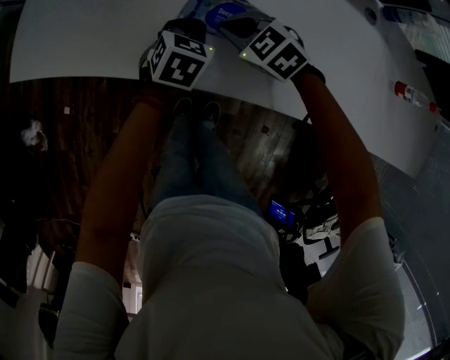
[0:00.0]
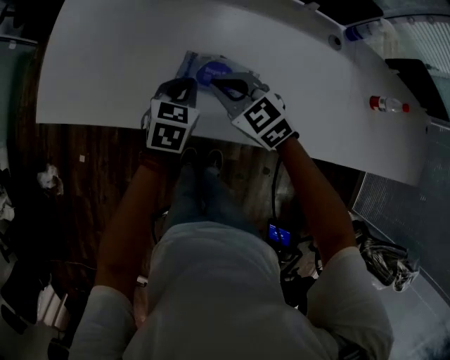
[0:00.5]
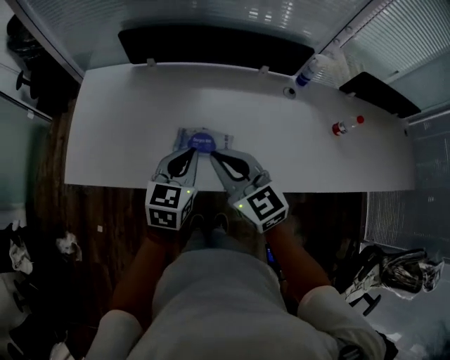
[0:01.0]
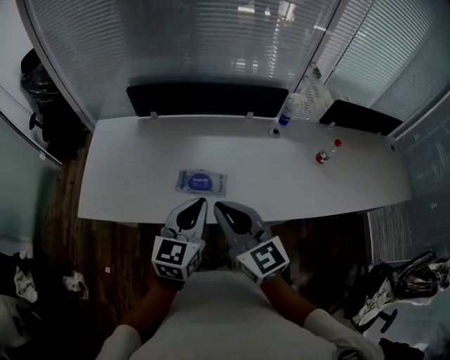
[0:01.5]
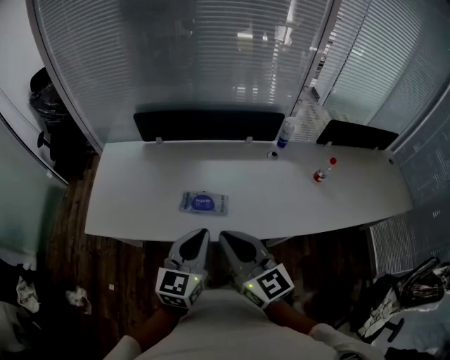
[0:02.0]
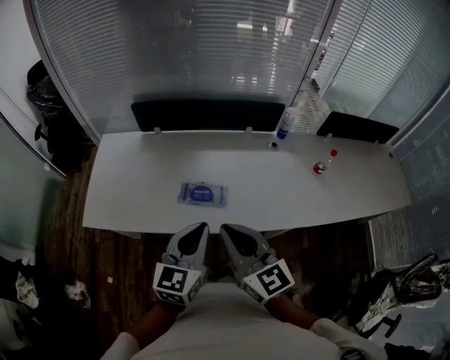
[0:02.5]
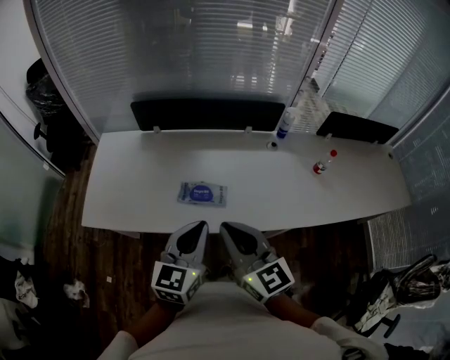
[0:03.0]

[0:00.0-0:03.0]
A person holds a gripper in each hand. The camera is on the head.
0:00.0 to 0:01.5: The grippers both shift upward and backward by about 40 cm. The left gripper tilts its fingers some 40 degrees upward; the right gripper tips its fingers upward by approximately 50 degrees.
0:01.5 to 0:03.0: The right gripper shifts by about 5 cm. Meanwhile the left gripper heads backward, covering roughly 5 cm.

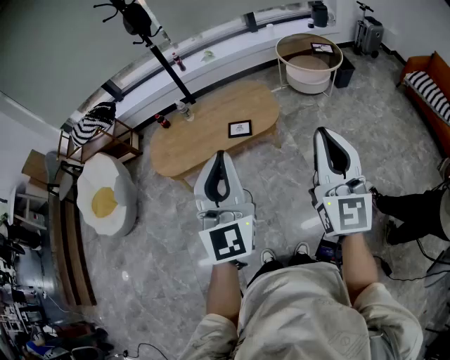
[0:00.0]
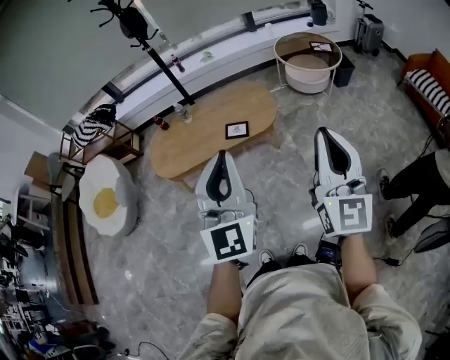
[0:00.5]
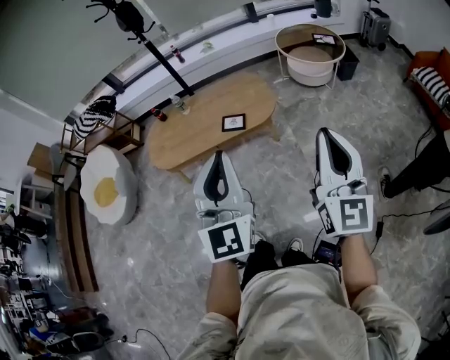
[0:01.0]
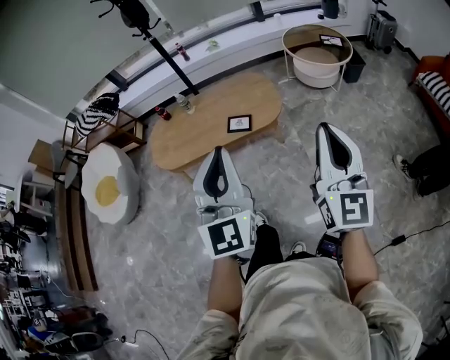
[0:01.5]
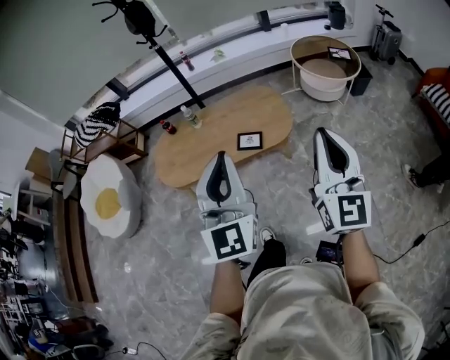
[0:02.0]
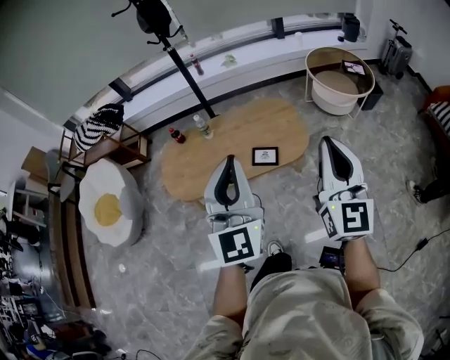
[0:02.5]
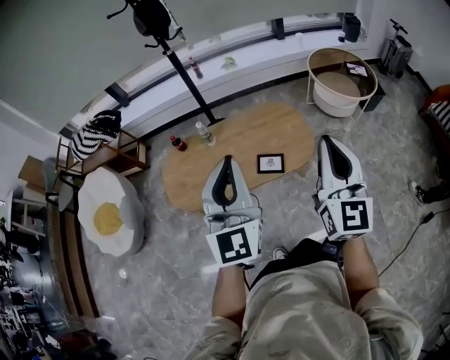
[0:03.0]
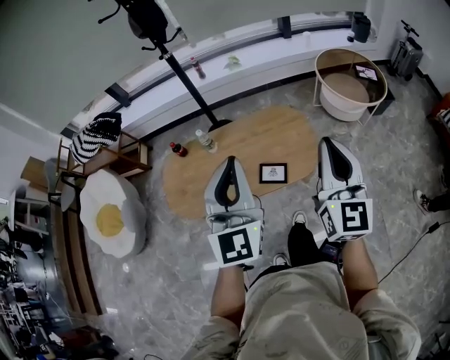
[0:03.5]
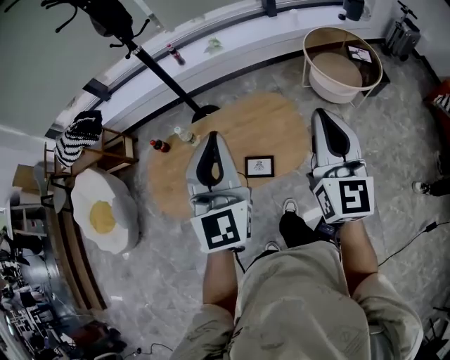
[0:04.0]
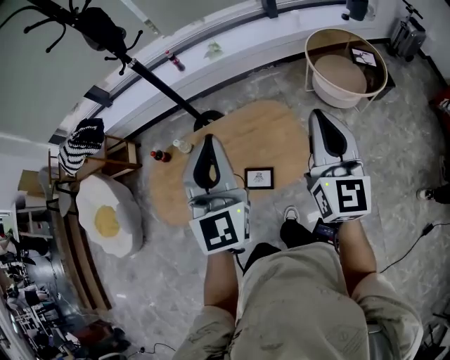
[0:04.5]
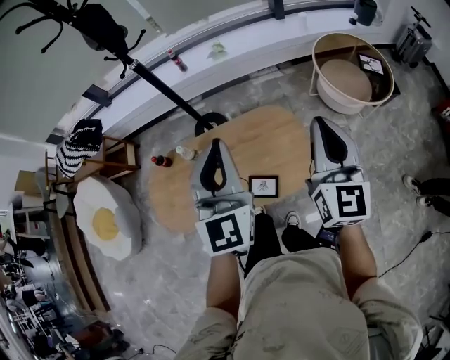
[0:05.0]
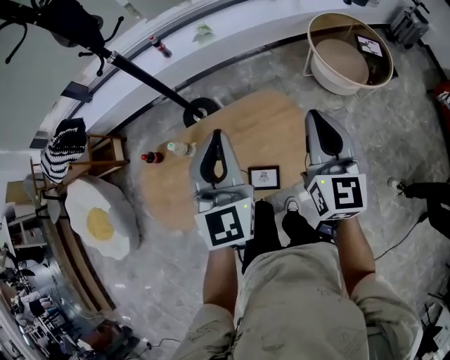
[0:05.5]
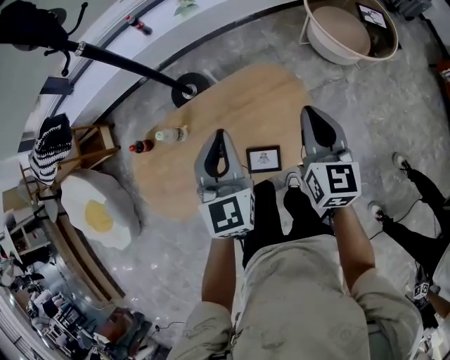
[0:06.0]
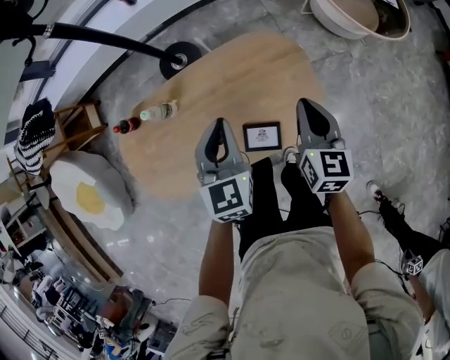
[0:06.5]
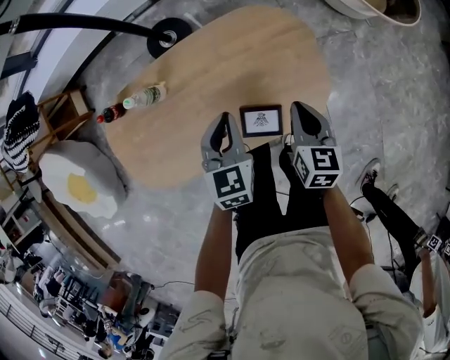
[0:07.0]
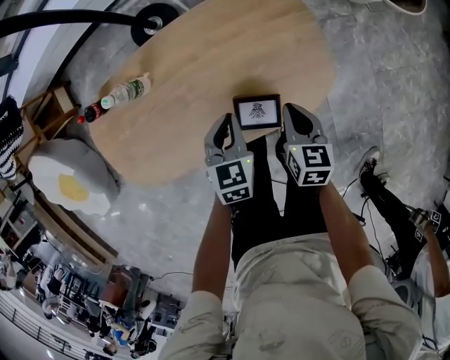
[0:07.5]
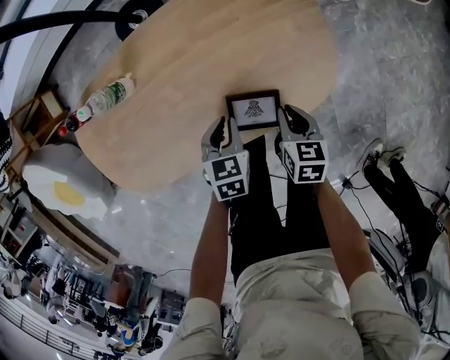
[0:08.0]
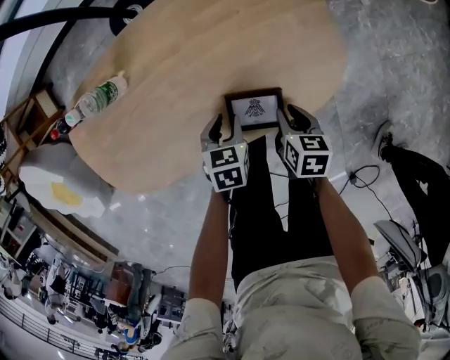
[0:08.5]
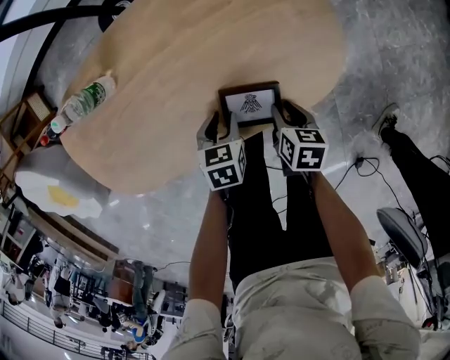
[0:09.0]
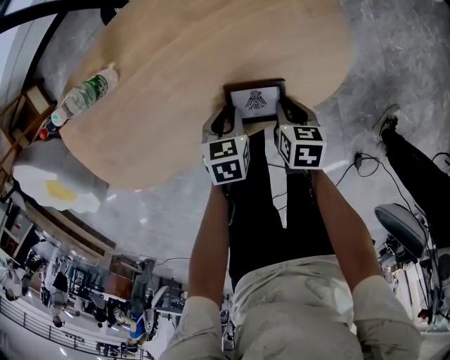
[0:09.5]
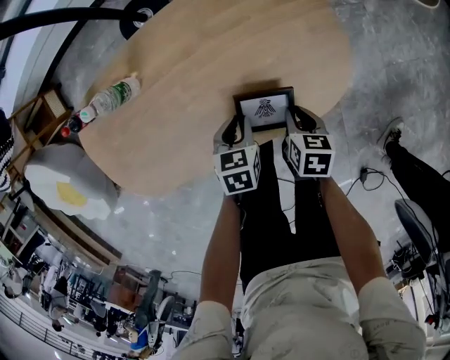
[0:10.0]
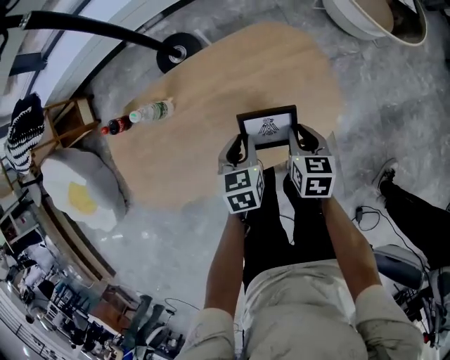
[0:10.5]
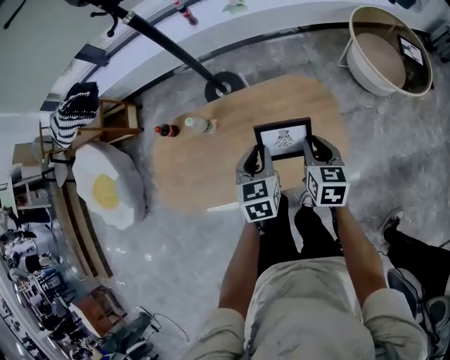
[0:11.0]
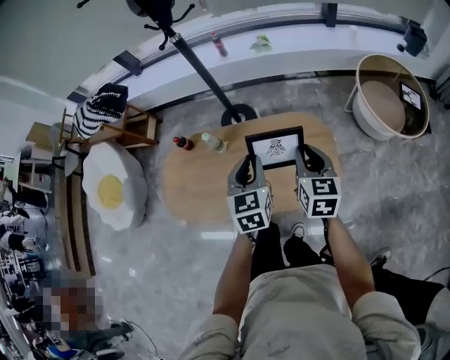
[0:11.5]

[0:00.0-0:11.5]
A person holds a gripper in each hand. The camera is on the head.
0:00.0 to 0:02.0: The two grippers go some 15 cm forward.
0:02.0 to 0:04.0: The grippers both shift forward by approximately 35 cm.
0:04.0 to 0:06.0: The grippers both shift downward and forward by some 25 cm. The right gripper changes its angle by some 20 degrees. The left gripper turns by some 20 degrees.
0:06.0 to 0:07.5: Both grippers move downward, some 30 cm. The right gripper changes its angle by approximately 30 degrees, while the left gripper changes its angle by approximately 30 degrees.
0:07.5 to 0:09.5: The right gripper travels downward and backward by about 15 cm, and turns by approximately 30 degrees, while the left gripper goes about 15 cm downward, and swivels about 20 degrees.
0:09.5 to 0:11.5: The two grippers go about 50 cm upward. The left gripper tilts its fingers some 40 degrees upward; the right gripper points its fingers approximately 40 degrees further upward.

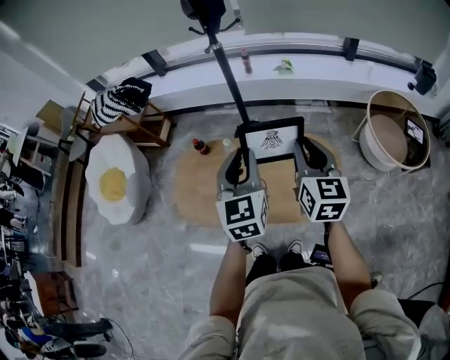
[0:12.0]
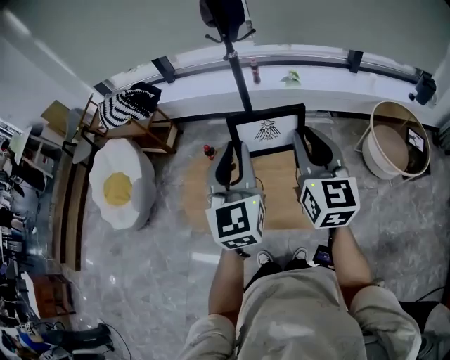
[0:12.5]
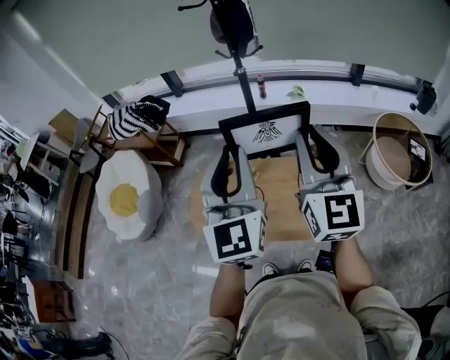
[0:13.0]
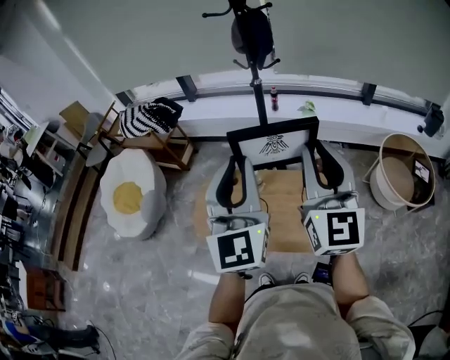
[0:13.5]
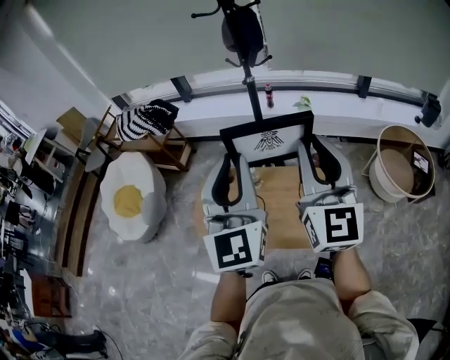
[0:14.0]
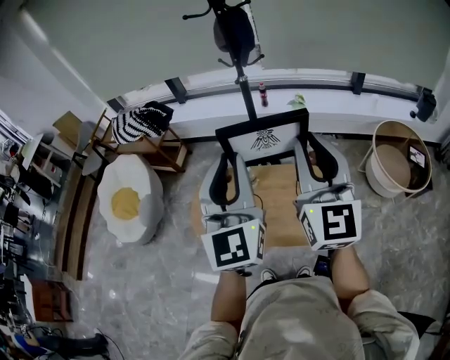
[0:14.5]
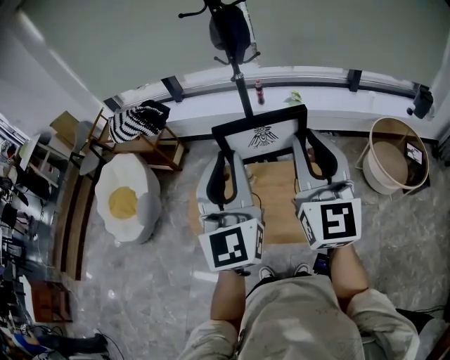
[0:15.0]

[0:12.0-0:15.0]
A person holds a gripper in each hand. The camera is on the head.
0:12.0 to 0:13.5: The grippers both shift upward and to the left by roughly 20 cm. The left gripper rotates about 20 degrees, while the right gripper rotates about 30 degrees.
0:13.5 to 0:15.0: There are only small adjustments of the grippers.

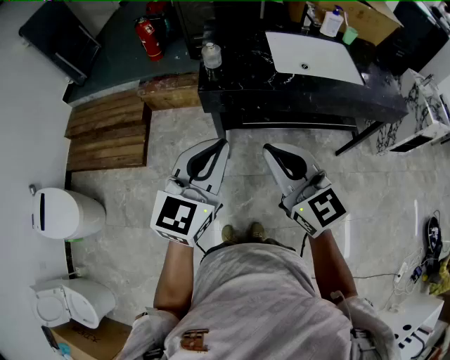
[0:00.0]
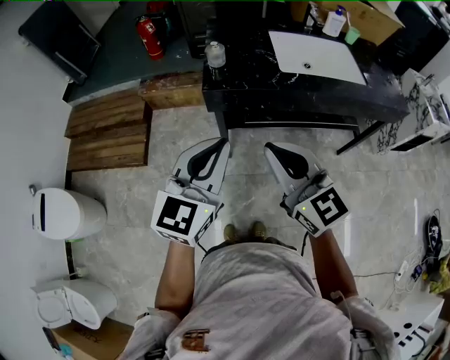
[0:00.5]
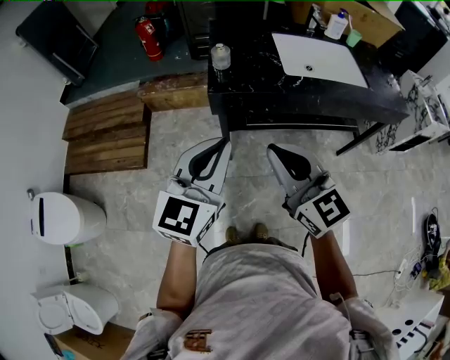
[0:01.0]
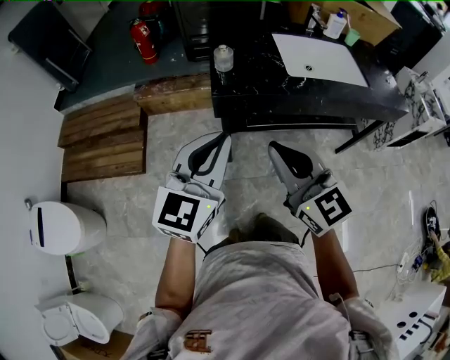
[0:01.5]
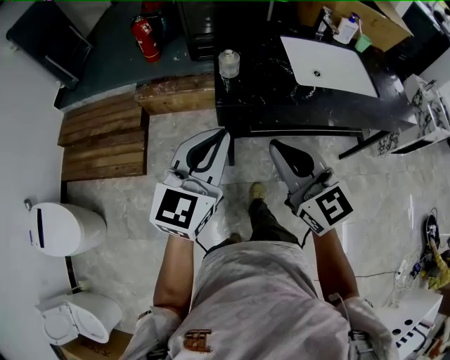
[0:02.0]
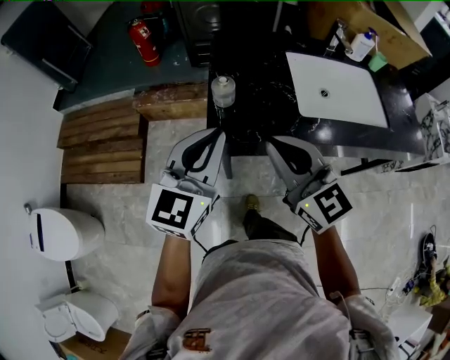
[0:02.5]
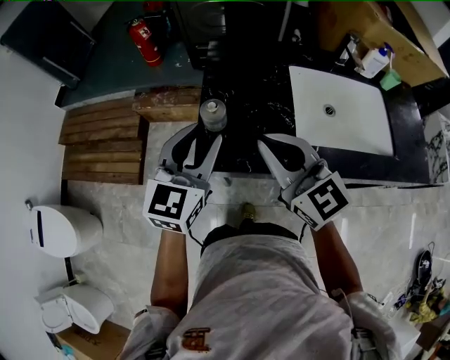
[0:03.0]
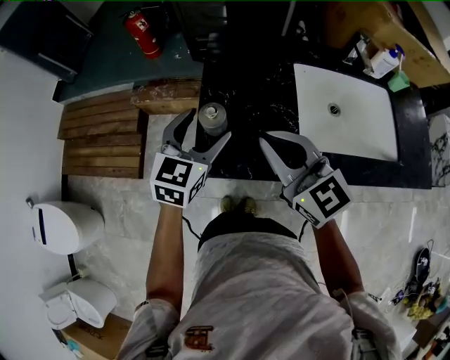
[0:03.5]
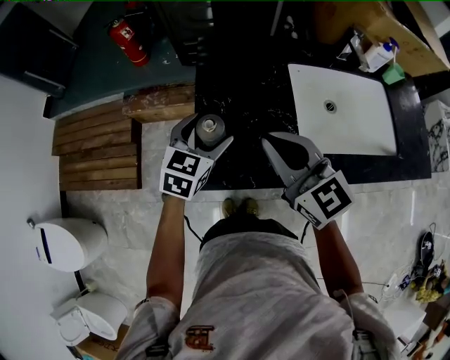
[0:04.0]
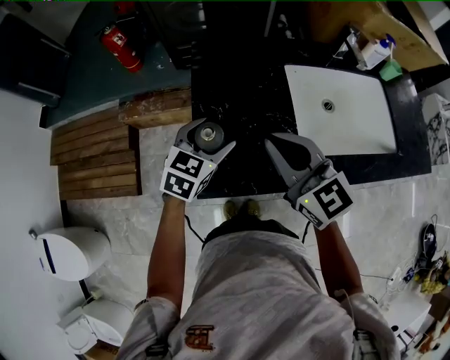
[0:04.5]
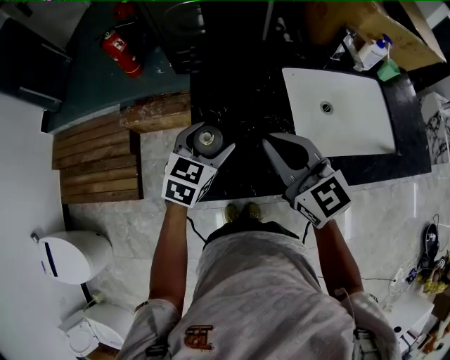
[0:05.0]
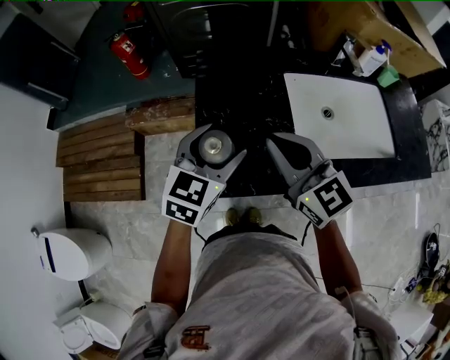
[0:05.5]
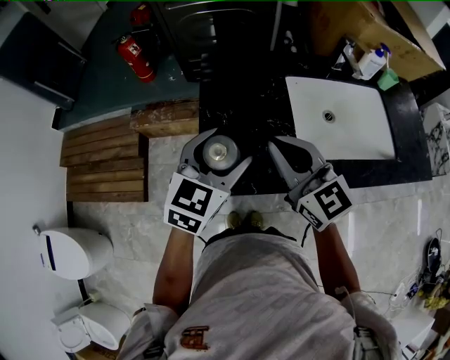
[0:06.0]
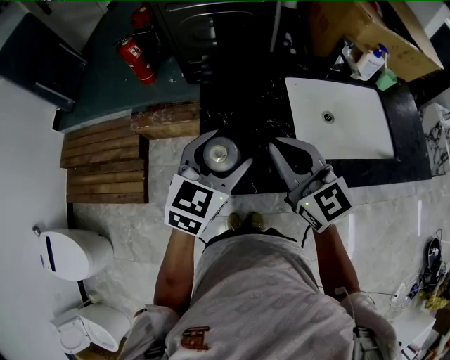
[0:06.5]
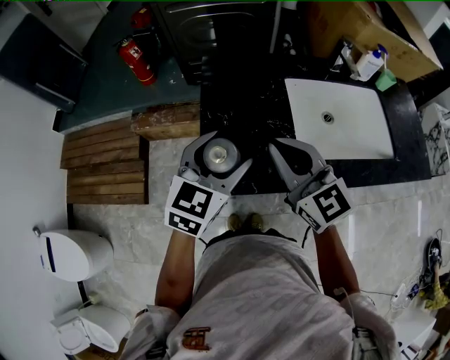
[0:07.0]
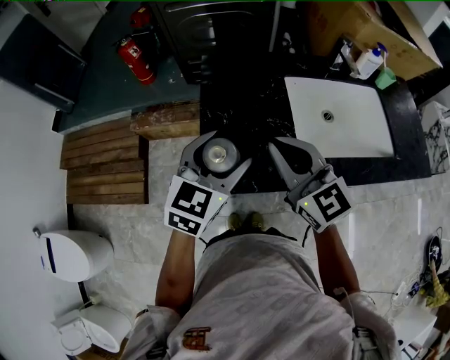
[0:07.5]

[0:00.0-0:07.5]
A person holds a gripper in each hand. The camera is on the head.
0:00.0 to 0:02.0: Both grippers travel together forward and to the left, some 10 cm.
0:02.0 to 0:04.0: The left gripper travels forward and downward by about 35 cm, rotates about 30 degrees, and opens its fingers; the right gripper moves forward, approximately 30 cm.
0:04.0 to 0:05.5: The left gripper travels upward by about 5 cm.
0:05.5 to 0:07.5: There are only small adjustments of the grippers.

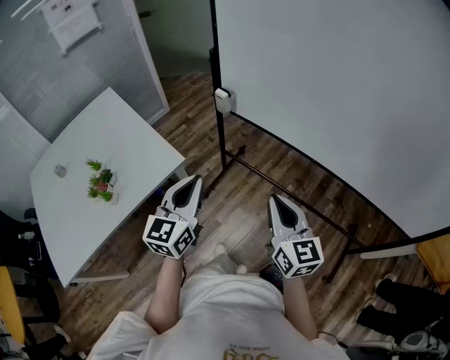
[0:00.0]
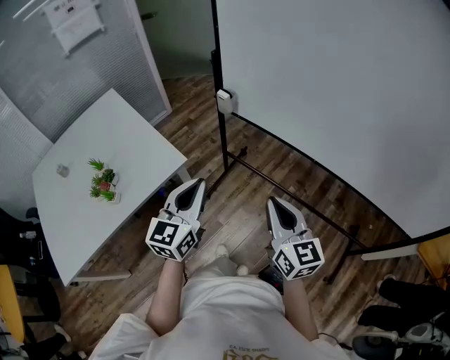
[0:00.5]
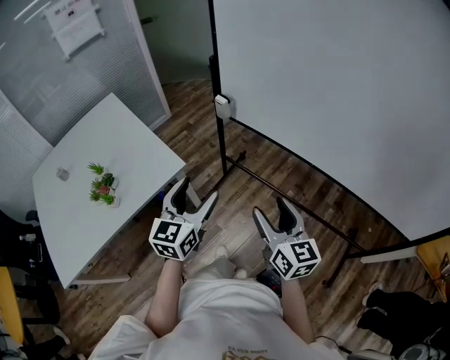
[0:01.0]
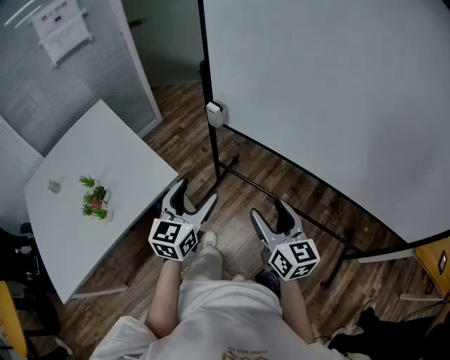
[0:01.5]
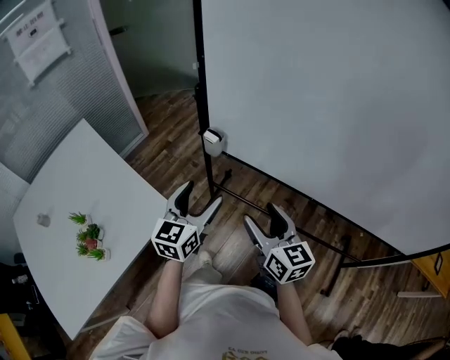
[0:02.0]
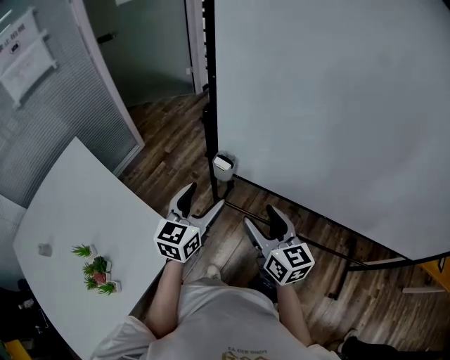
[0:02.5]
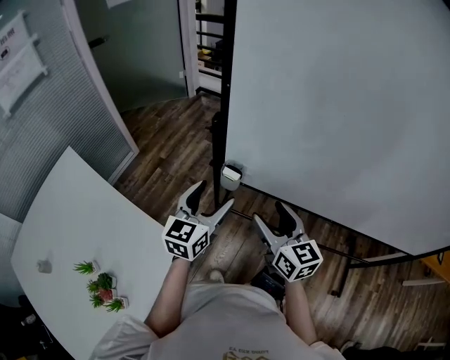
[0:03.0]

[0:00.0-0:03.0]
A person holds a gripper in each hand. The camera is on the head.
0:00.0 to 0:01.5: The right gripper opens its fingers. Meanwhile the left gripper heads forward, covering roughly 5 cm, and opens.
0:01.5 to 0:03.0: The left gripper shifts approximately 30 cm forward. Meanwhile the right gripper is displaced forward and to the left by about 30 cm.
